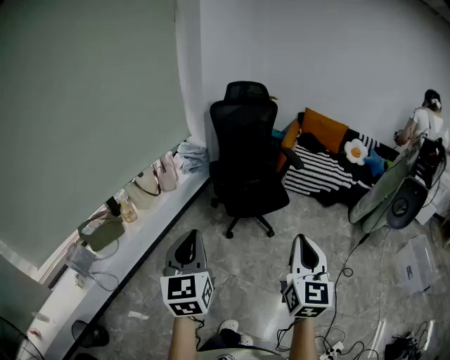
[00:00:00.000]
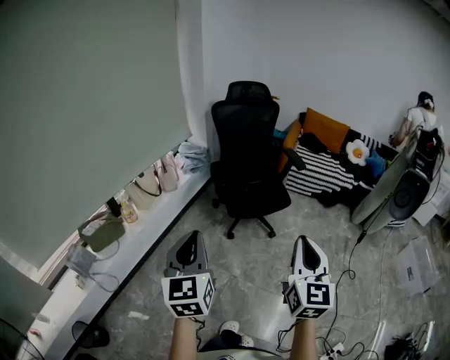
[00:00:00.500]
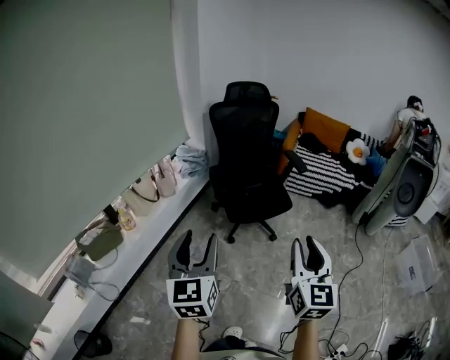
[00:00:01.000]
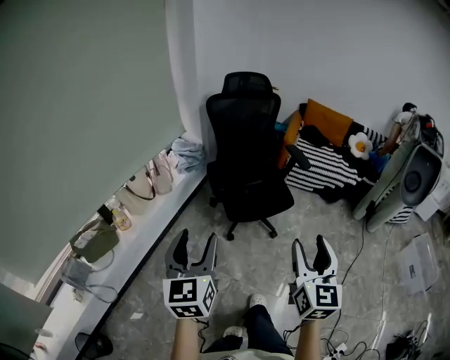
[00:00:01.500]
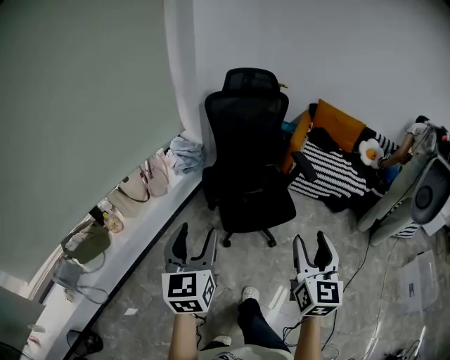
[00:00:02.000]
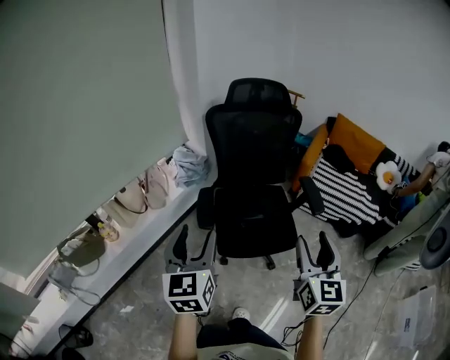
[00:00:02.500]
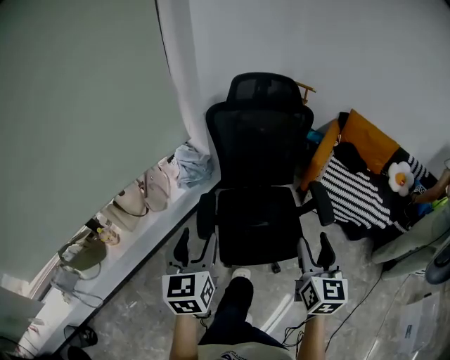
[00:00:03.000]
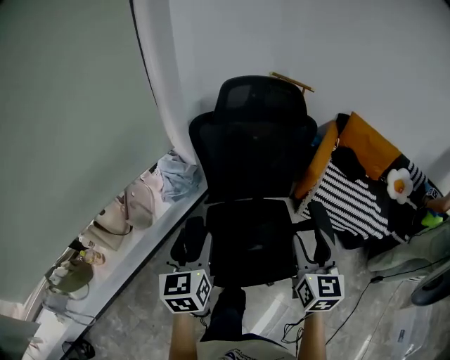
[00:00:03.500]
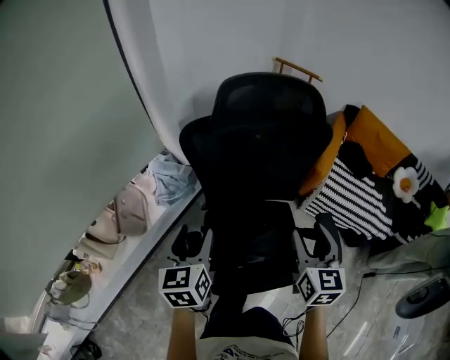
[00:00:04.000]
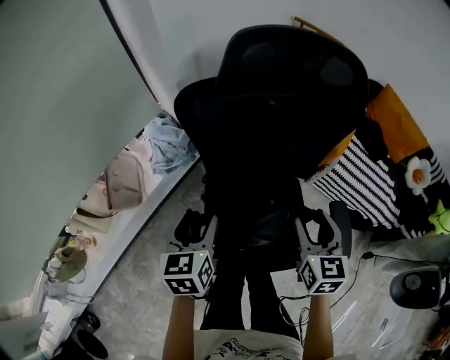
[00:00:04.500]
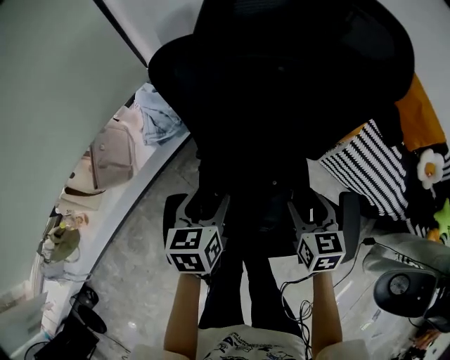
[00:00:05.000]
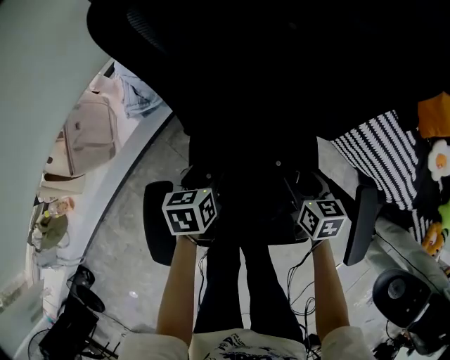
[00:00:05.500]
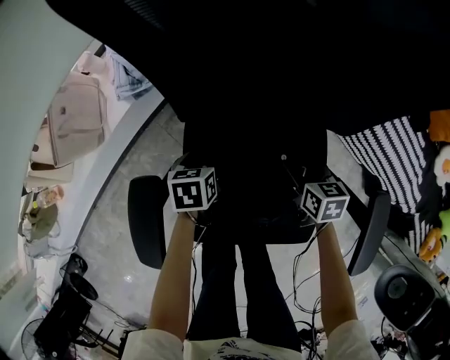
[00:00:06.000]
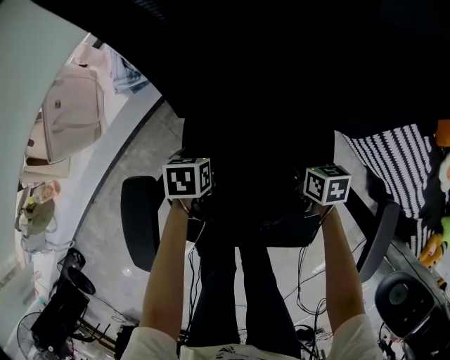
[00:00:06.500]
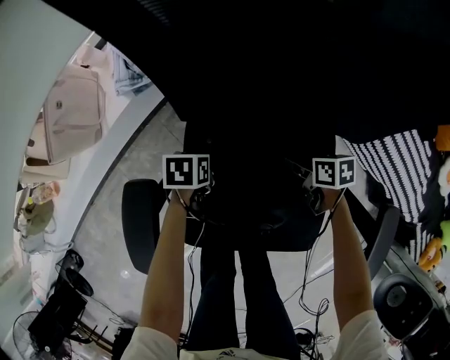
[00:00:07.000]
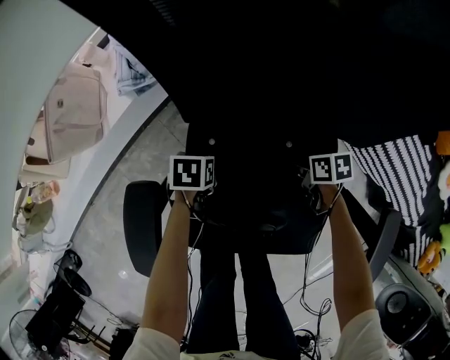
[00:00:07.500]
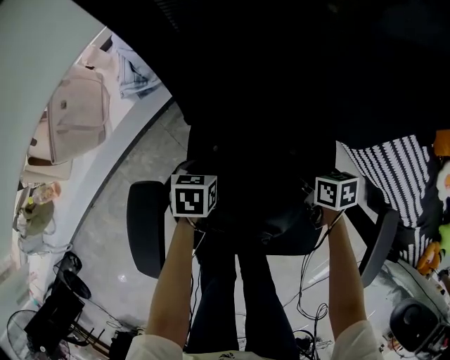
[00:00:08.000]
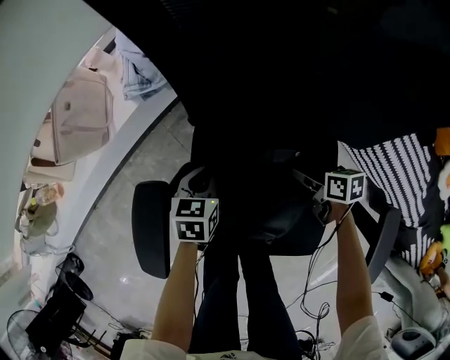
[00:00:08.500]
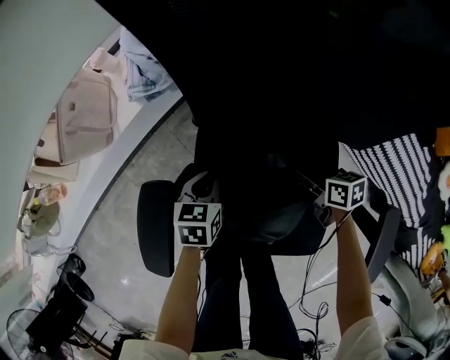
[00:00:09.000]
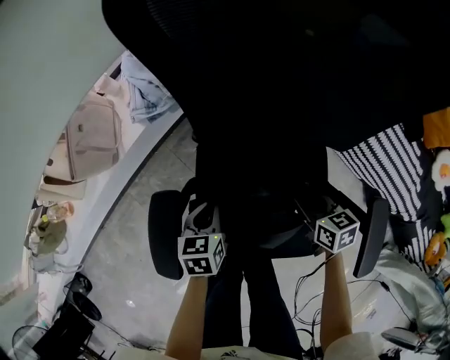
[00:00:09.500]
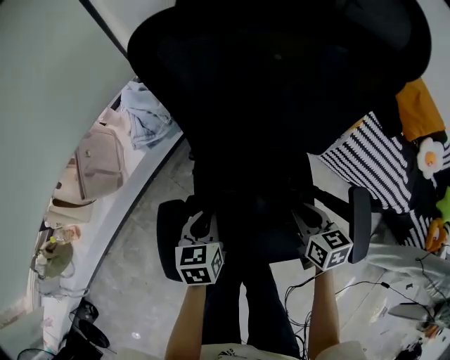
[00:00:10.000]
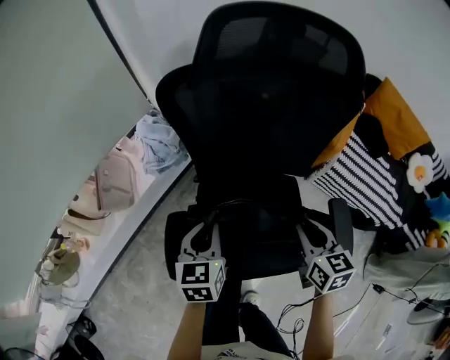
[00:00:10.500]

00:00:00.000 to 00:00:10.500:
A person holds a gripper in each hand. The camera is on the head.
00:00:00.000 to 00:00:02.000: The two grippers go roughly 25 cm forward. The right gripper opens its fingers, while the left gripper opens its fingers.
00:00:02.000 to 00:00:04.000: Both grippers are carried forward, approximately 60 cm.
00:00:04.000 to 00:00:06.500: The two grippers go roughly 50 cm downward. The right gripper points its fingers roughly 40 degrees further downward, while the left gripper angles its fingers downward, by roughly 40 degrees.
00:00:06.500 to 00:00:08.500: The left gripper travels upward by roughly 5 cm, and closes its fingers.
00:00:08.500 to 00:00:10.500: The two grippers go roughly 35 cm upward. The right gripper turns by about 40 degrees, and closes up.

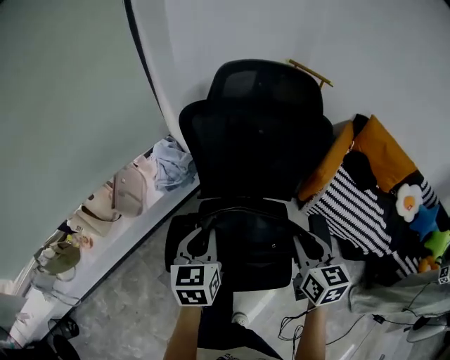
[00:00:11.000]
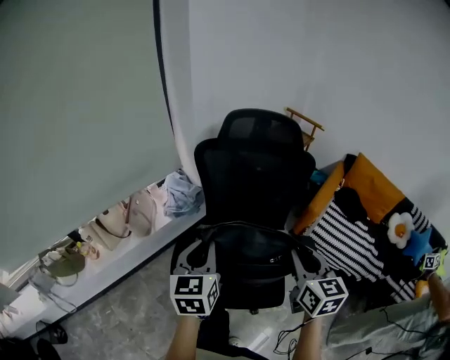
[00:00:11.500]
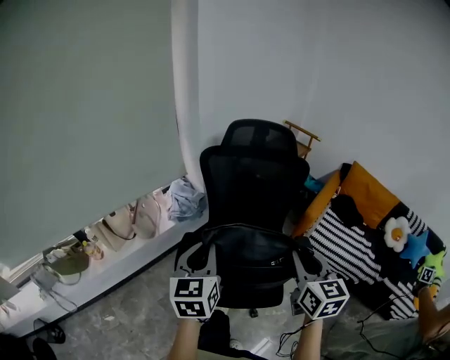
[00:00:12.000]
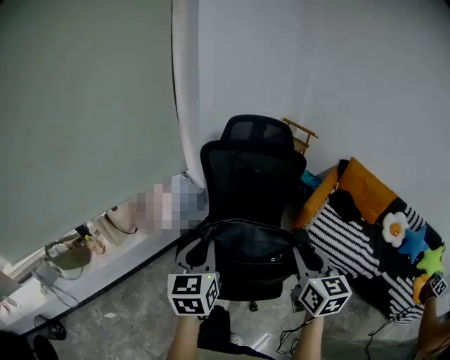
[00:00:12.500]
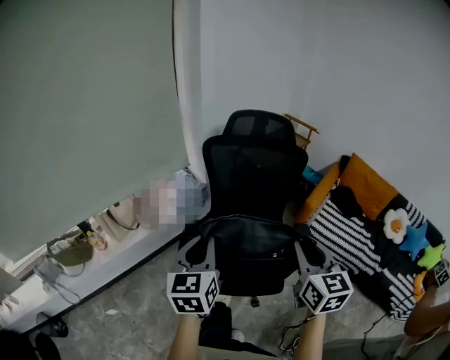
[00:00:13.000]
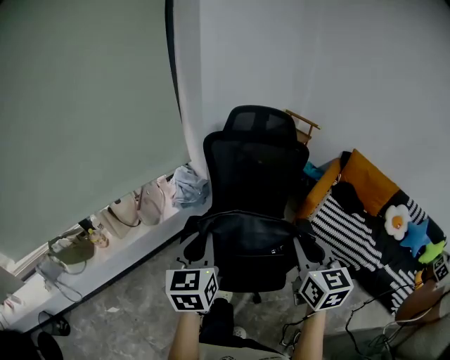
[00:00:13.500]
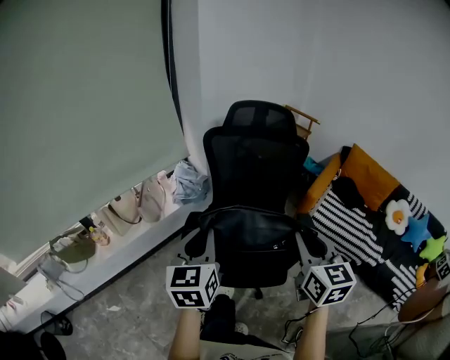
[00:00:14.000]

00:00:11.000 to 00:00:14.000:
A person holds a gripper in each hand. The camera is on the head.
00:00:11.000 to 00:00:12.500: Both grippers move backward and upward, roughly 25 cm.
00:00:12.500 to 00:00:14.000: The grippers make only small movements.

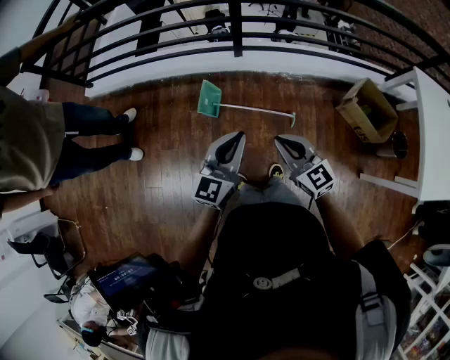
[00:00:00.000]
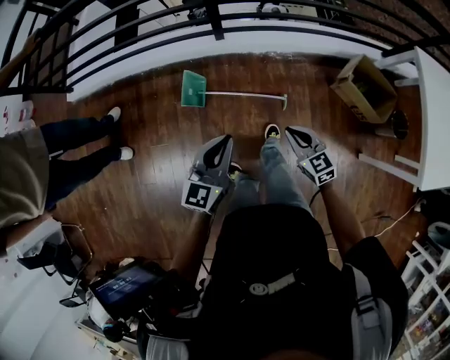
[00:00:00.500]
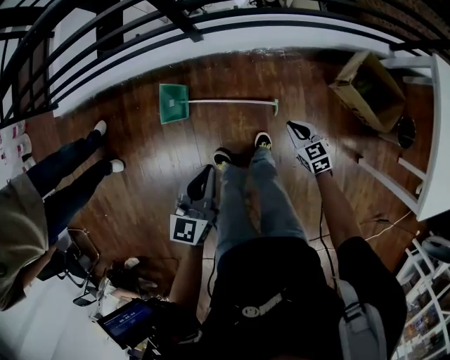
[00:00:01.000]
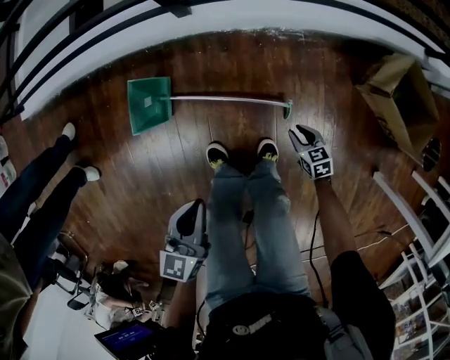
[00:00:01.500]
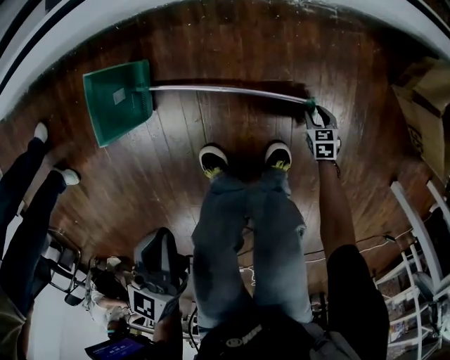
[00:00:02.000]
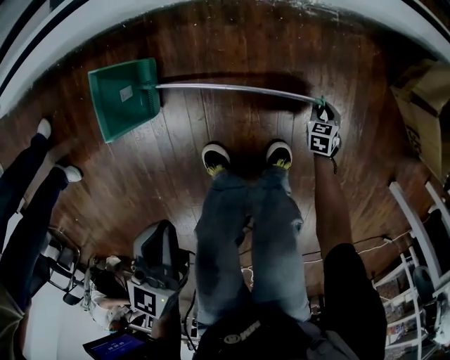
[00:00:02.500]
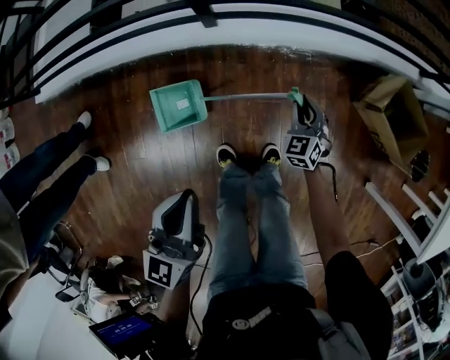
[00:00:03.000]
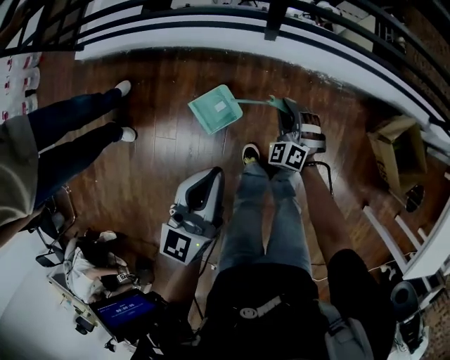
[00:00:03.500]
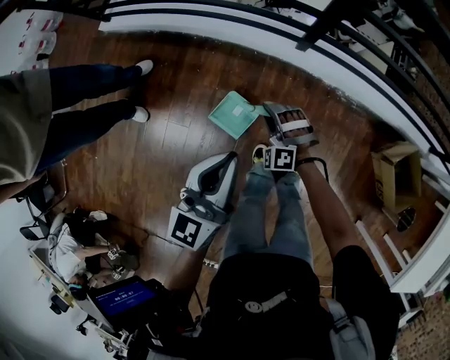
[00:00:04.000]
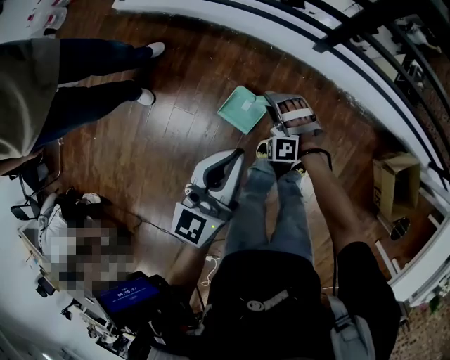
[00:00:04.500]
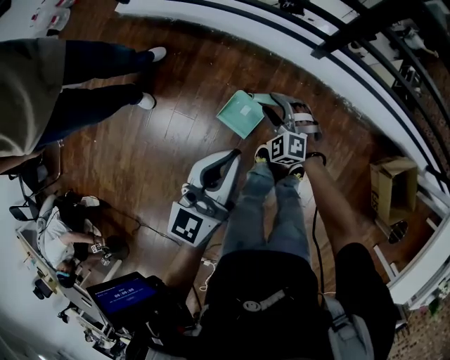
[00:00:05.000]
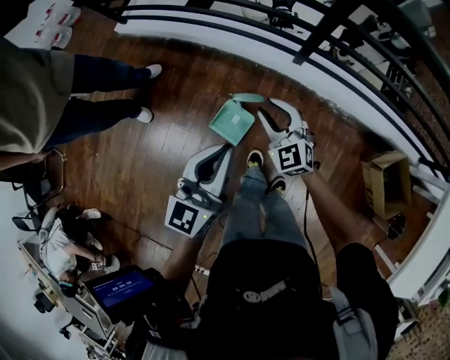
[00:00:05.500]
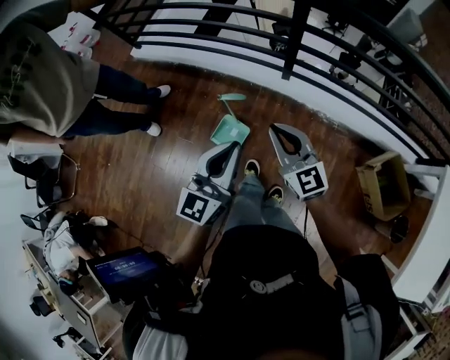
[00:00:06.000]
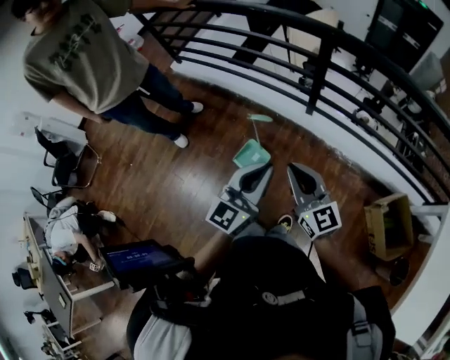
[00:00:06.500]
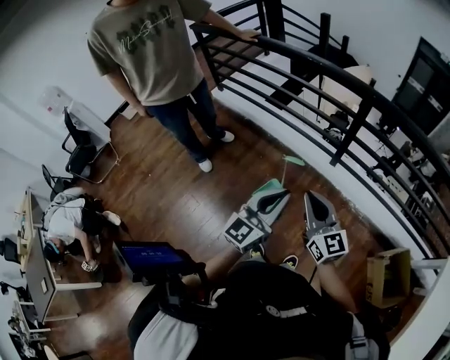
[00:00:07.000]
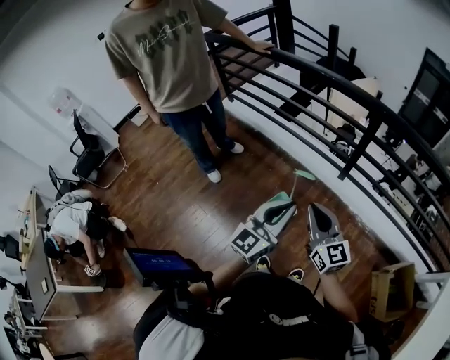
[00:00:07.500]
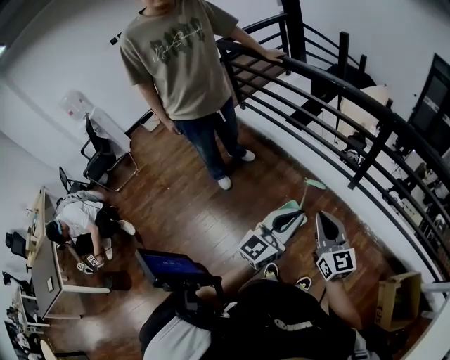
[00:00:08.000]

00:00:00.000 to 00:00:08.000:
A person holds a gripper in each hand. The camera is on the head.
00:00:00.000 to 00:00:02.000: The right gripper goes roughly 80 cm downward, points its fingers roughly 50 degrees further downward, and opens. The left gripper goes roughly 50 cm downward, and changes its angle by roughly 30 degrees.
00:00:02.000 to 00:00:04.000: The grippers both shift upward by some 50 cm. The left gripper turns by approximately 30 degrees, while the right gripper rotates around the line of its fingers by some 90 degrees, counterclockwise from behind.
00:00:04.000 to 00:00:06.000: The right gripper travels upward and backward by roughly 35 cm, rotates around the line of its fingers by some 60 degrees, clockwise from behind, and closes, while the left gripper heads backward, upward and to the right, covering roughly 20 cm.
00:00:06.000 to 00:00:08.000: The left gripper is displaced to the left by roughly 10 cm, while the right gripper travels to the left and upward by roughly 15 cm.

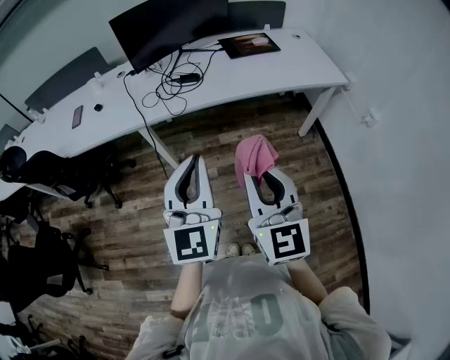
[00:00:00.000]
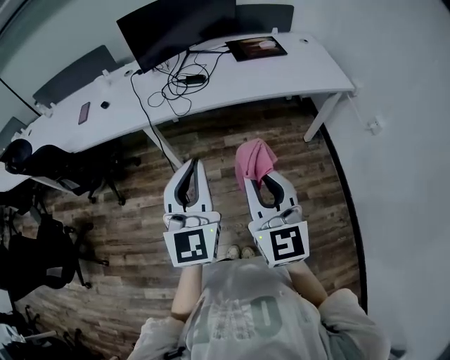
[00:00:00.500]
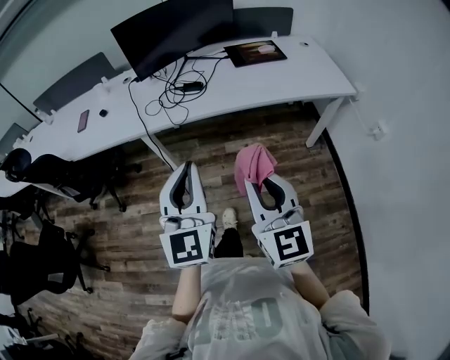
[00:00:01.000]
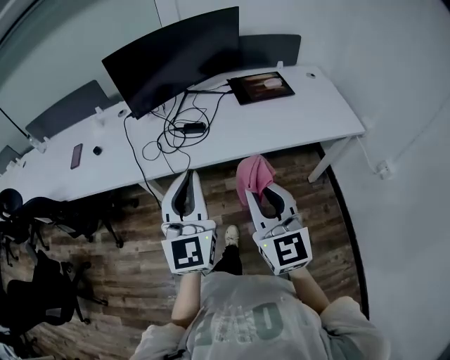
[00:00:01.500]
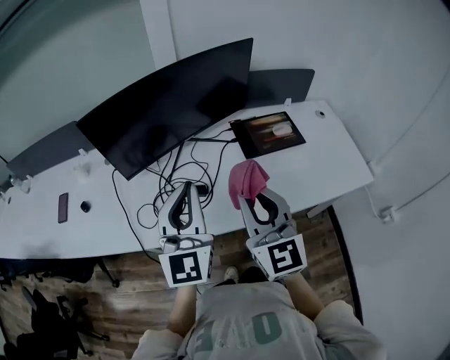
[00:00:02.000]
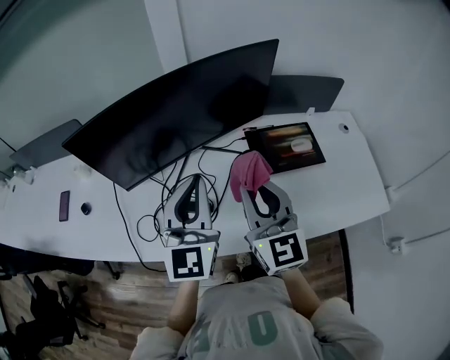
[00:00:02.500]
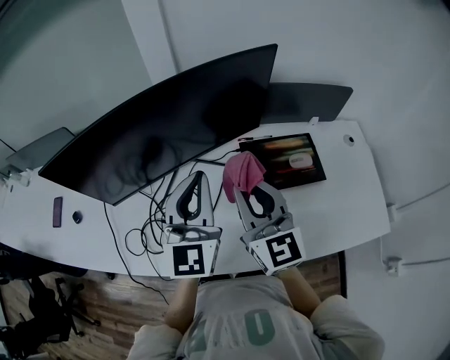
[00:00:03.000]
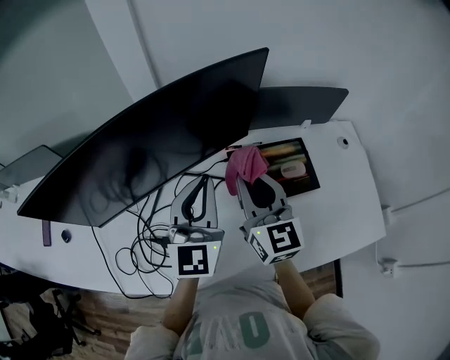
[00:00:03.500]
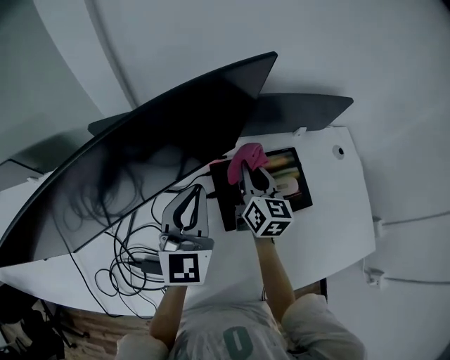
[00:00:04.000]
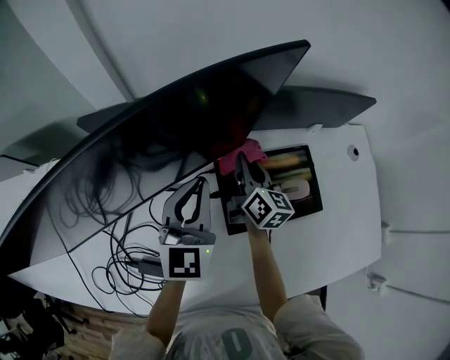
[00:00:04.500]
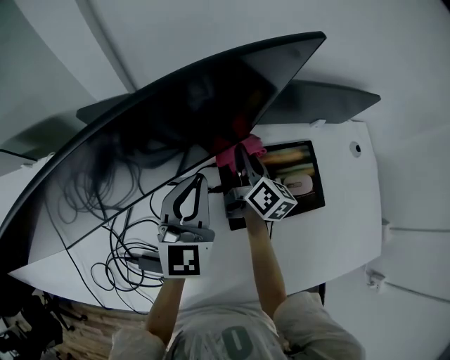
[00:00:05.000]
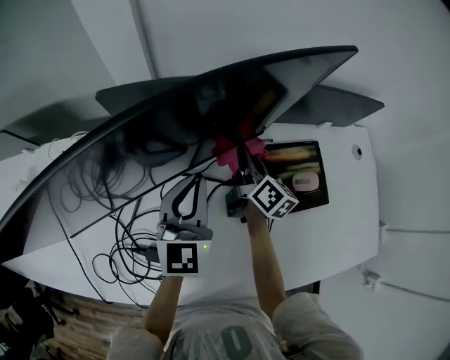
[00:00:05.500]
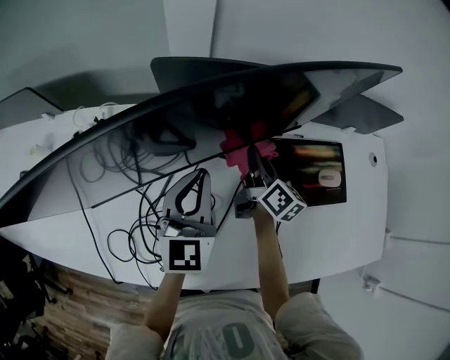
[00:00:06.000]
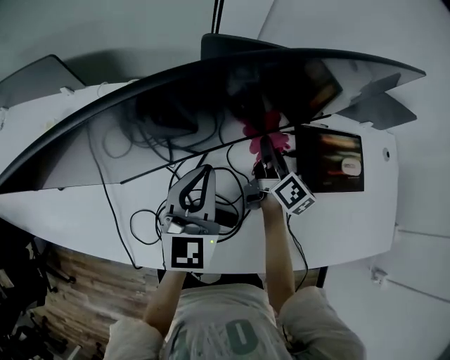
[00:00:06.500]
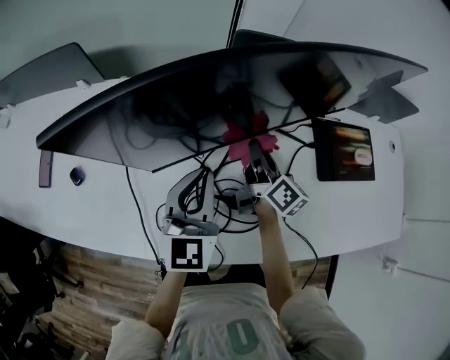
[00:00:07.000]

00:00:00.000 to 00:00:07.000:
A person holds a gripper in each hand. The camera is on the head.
00:00:00.000 to 00:00:02.000: The two grippers travel together, forward, about 50 cm.
00:00:02.000 to 00:00:03.500: The grippers both shift forward and to the right by about 30 cm.
00:00:03.500 to 00:00:05.000: The left gripper travels downward and forward by roughly 15 cm; the right gripper goes approximately 25 cm downward and forward, and twists roughly 40 degrees clockwise, seen from behind.
00:00:05.000 to 00:00:07.000: Both grippers travel together to the left and backward, roughly 30 cm.
